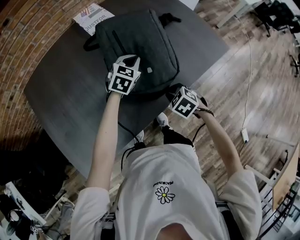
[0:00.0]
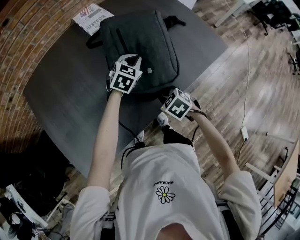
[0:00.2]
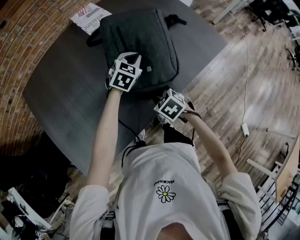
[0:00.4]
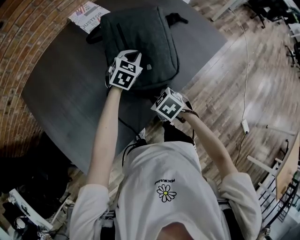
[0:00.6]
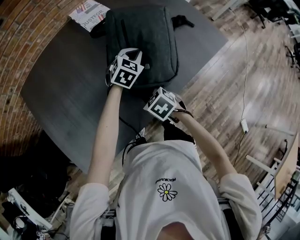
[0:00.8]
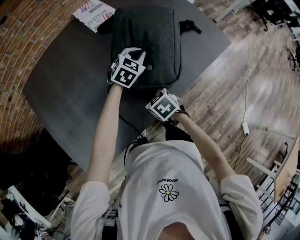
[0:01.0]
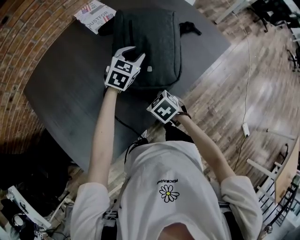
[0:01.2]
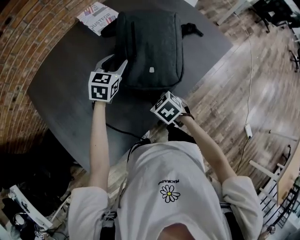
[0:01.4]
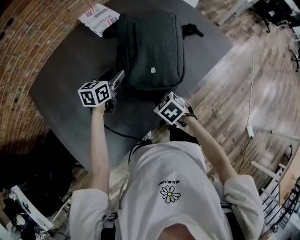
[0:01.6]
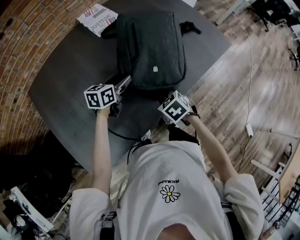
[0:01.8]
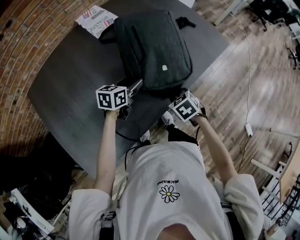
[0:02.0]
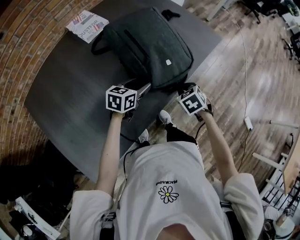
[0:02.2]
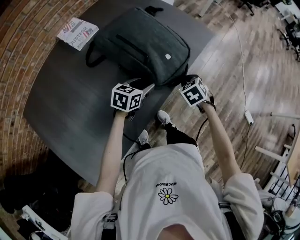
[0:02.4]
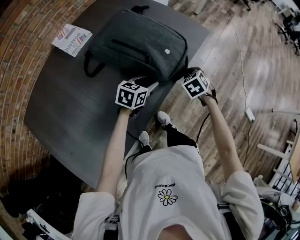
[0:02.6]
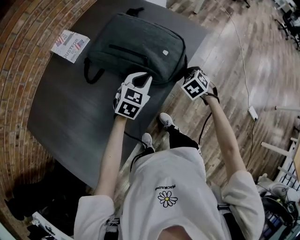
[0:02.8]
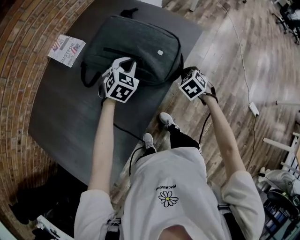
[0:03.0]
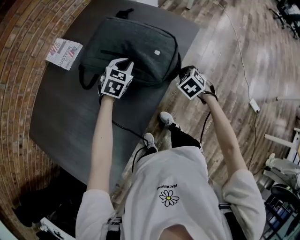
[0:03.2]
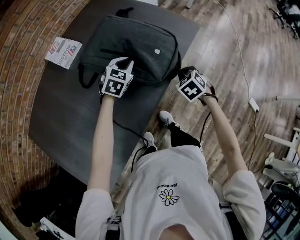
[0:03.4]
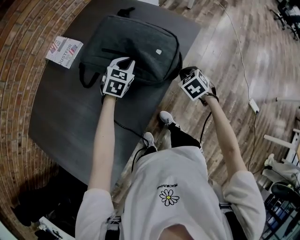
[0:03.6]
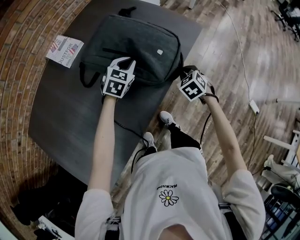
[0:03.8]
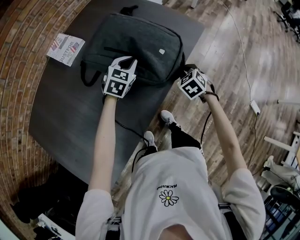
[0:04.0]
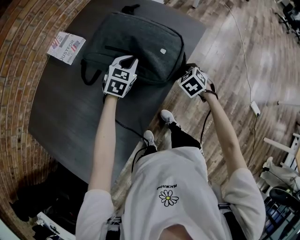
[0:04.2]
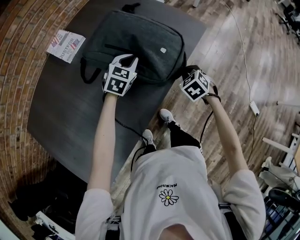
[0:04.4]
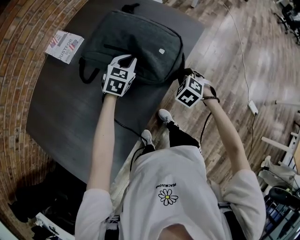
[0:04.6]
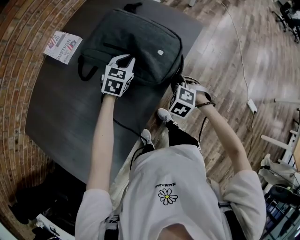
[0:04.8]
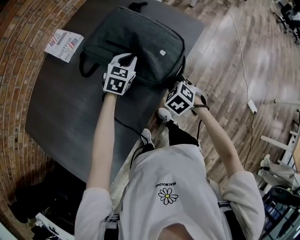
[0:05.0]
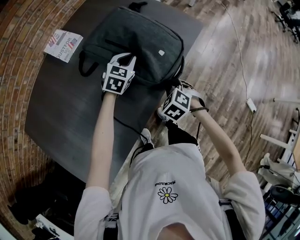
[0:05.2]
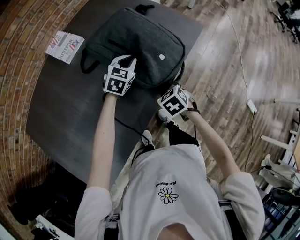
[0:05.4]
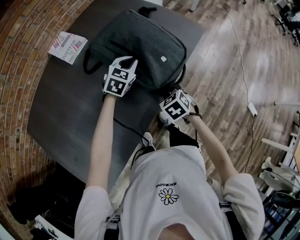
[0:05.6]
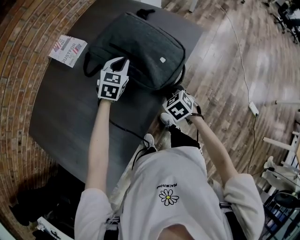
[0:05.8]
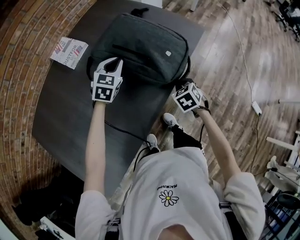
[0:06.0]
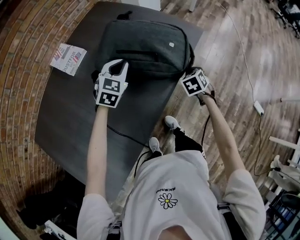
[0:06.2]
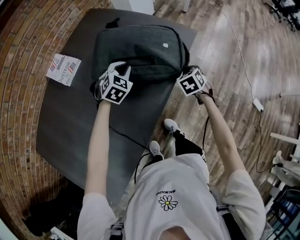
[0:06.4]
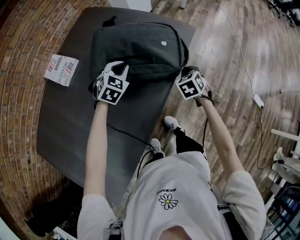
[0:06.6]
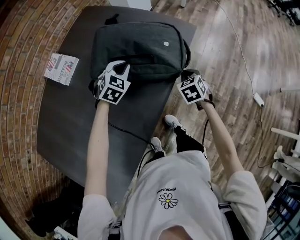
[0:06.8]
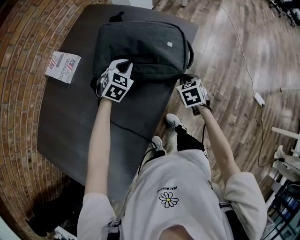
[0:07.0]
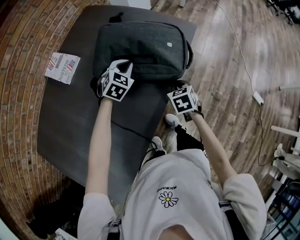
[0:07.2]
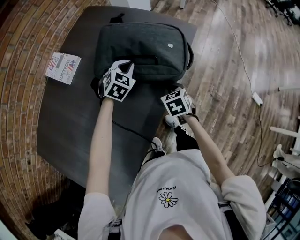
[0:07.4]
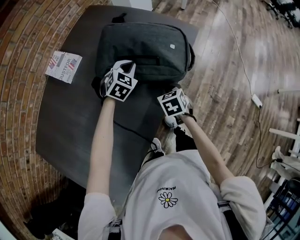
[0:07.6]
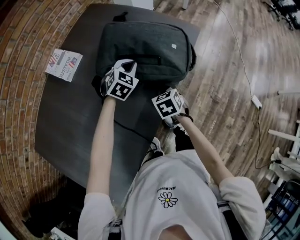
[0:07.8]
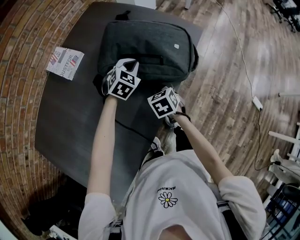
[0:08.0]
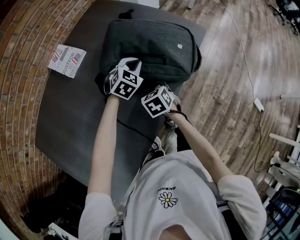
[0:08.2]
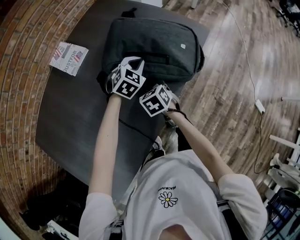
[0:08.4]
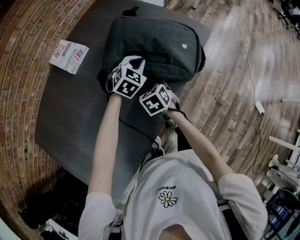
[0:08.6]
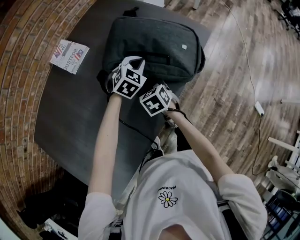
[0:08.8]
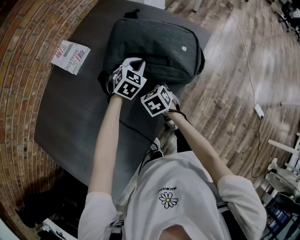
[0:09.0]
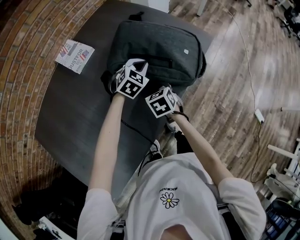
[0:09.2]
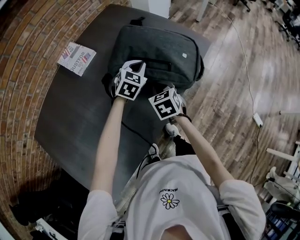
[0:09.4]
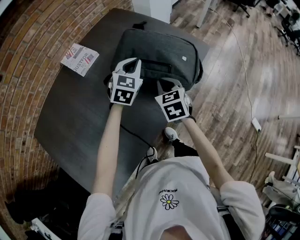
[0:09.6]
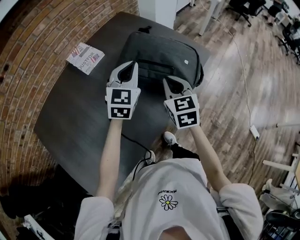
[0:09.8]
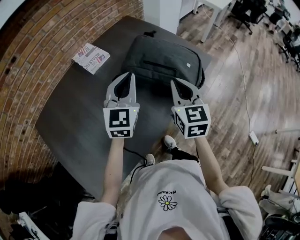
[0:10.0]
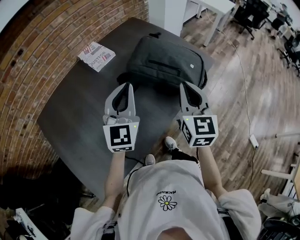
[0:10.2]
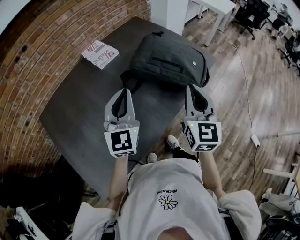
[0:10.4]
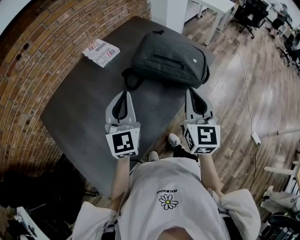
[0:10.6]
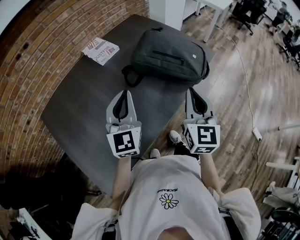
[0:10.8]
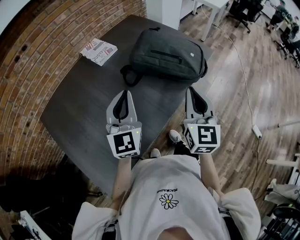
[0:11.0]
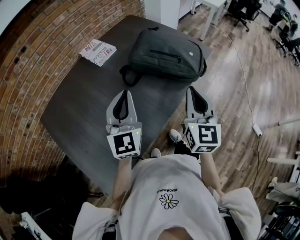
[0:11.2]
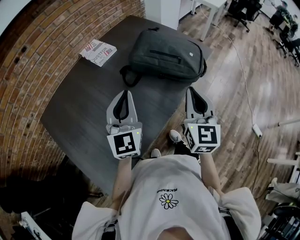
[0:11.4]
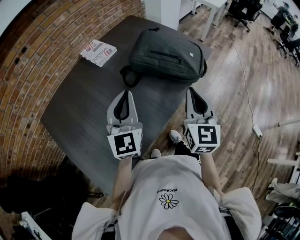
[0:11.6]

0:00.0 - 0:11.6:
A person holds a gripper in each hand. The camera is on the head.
0:00.0 - 0:01.4: The grippers both shift to the left by about 10 cm. The left gripper opens its fingers.
0:01.4 - 0:02.8: The right gripper changes place by some 30 cm, and rotates some 30 degrees. Meanwhile the left gripper shifts by roughly 25 cm, swivels approximately 30 degrees, and closes its fingers.
0:02.8 - 0:04.4: The left gripper moves forward and to the left, approximately 10 cm.
0:04.4 - 0:05.8: The left gripper ends up approximately 5 cm from where it was. Meanwhile the right gripper heads backward and to the left, covering approximately 10 cm.
0:05.8 - 0:07.2: The right gripper travels forward by about 5 cm, and swivels approximately 20 degrees. Meanwhile the left gripper moves roughly 5 cm.
0:07.2 - 0:08.8: The right gripper travels to the left by approximately 15 cm.
0:08.8 - 0:10.2: The right gripper is displaced upward by approximately 30 cm, and tilts its fingers some 50 degrees upward. Meanwhile the left gripper goes about 30 cm upward, backward and to the left, and tilts its fingers some 40 degrees upward.
0:10.2 - 0:11.6: Both grippers move backward, some 10 cm.

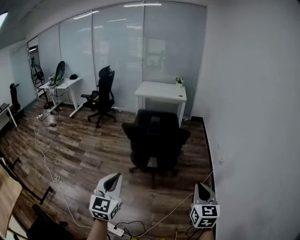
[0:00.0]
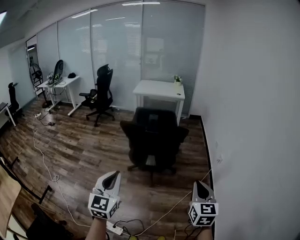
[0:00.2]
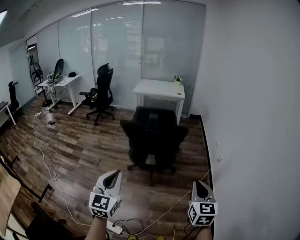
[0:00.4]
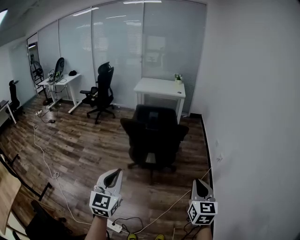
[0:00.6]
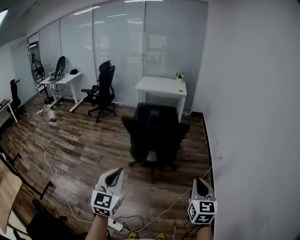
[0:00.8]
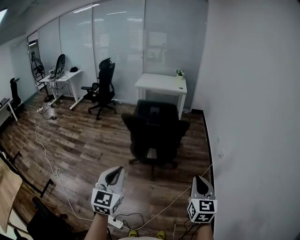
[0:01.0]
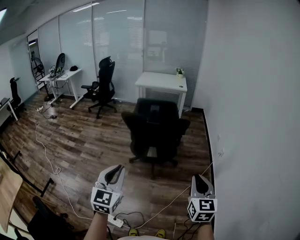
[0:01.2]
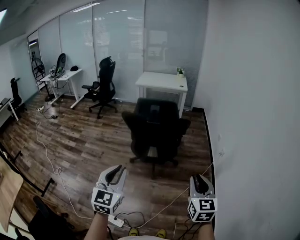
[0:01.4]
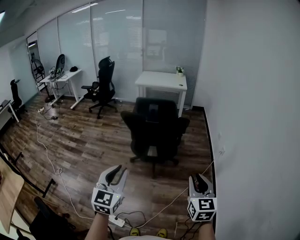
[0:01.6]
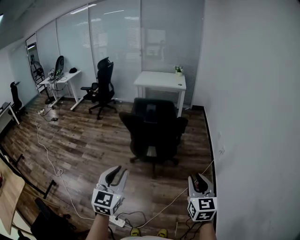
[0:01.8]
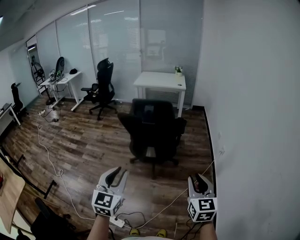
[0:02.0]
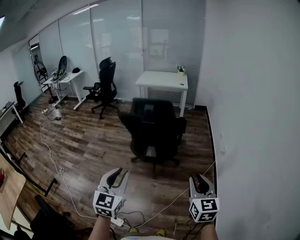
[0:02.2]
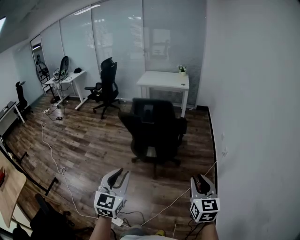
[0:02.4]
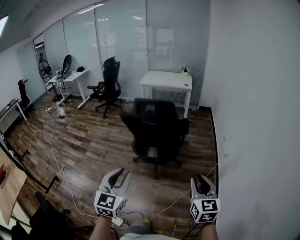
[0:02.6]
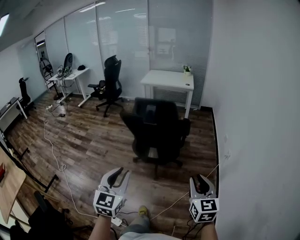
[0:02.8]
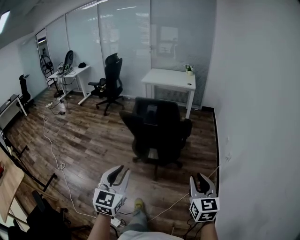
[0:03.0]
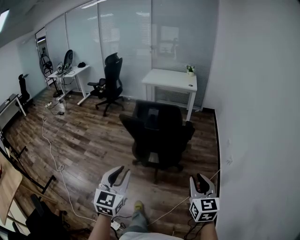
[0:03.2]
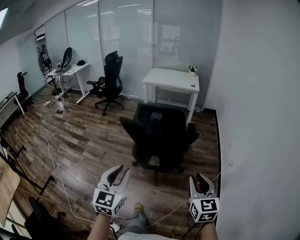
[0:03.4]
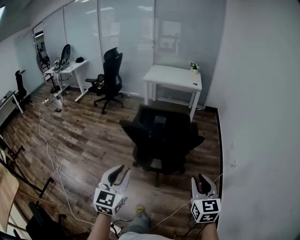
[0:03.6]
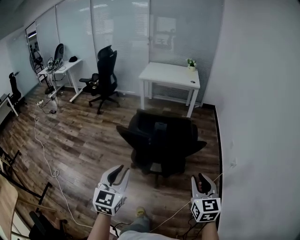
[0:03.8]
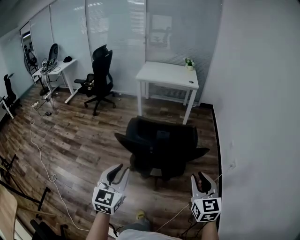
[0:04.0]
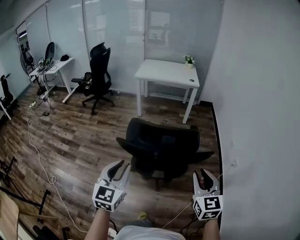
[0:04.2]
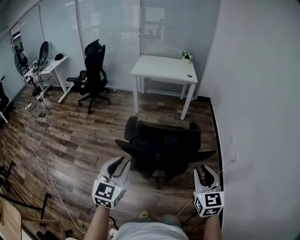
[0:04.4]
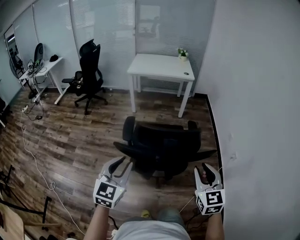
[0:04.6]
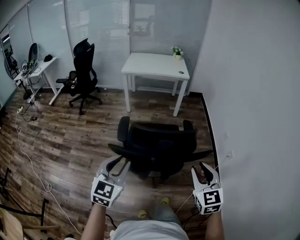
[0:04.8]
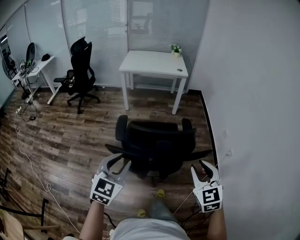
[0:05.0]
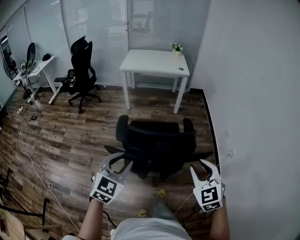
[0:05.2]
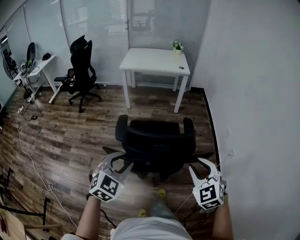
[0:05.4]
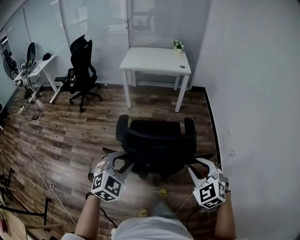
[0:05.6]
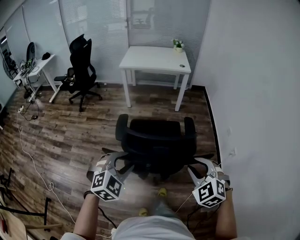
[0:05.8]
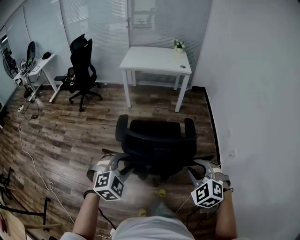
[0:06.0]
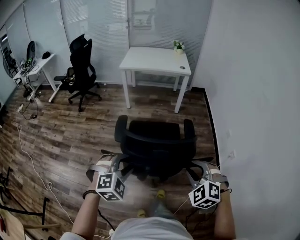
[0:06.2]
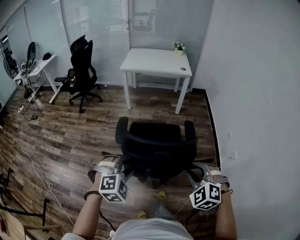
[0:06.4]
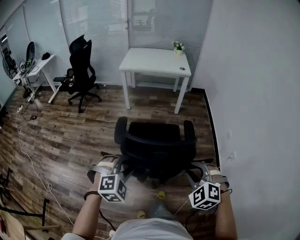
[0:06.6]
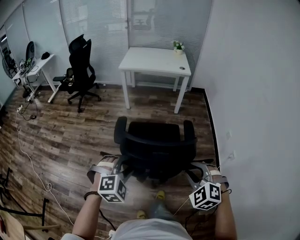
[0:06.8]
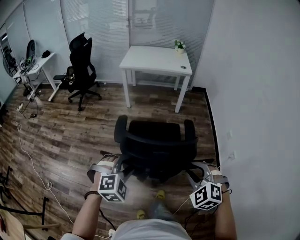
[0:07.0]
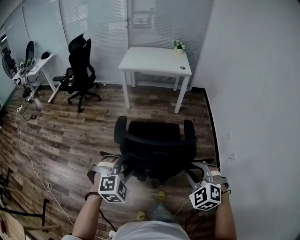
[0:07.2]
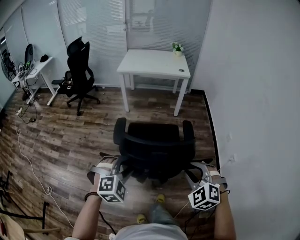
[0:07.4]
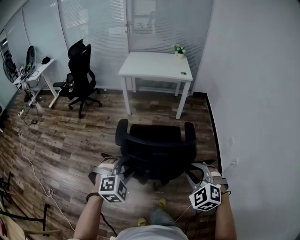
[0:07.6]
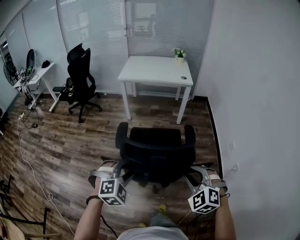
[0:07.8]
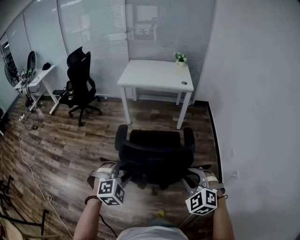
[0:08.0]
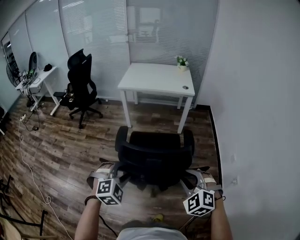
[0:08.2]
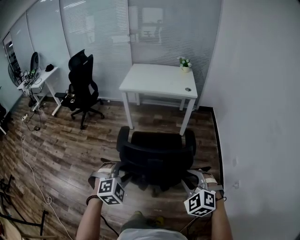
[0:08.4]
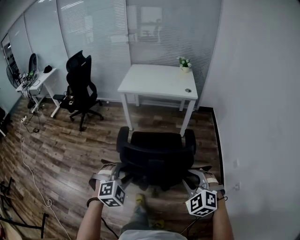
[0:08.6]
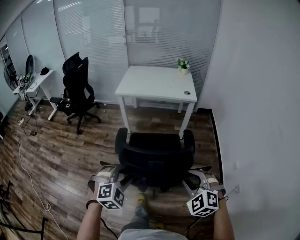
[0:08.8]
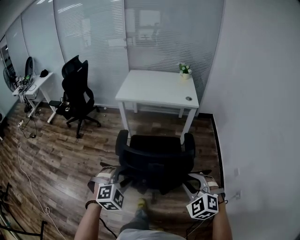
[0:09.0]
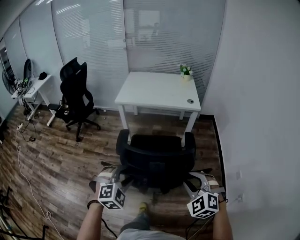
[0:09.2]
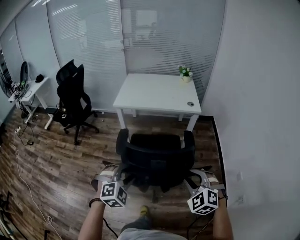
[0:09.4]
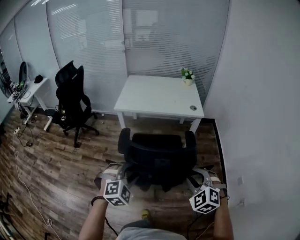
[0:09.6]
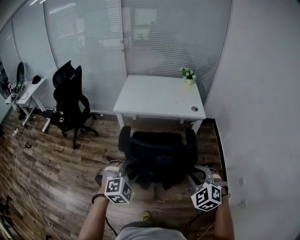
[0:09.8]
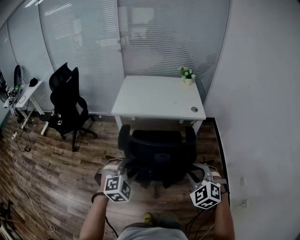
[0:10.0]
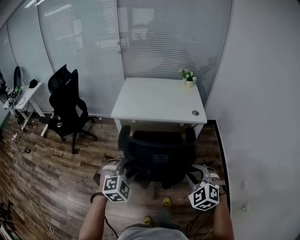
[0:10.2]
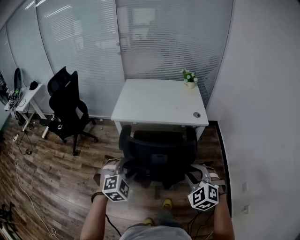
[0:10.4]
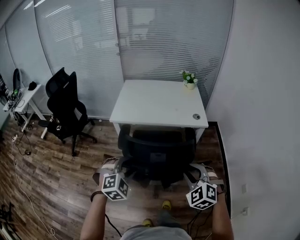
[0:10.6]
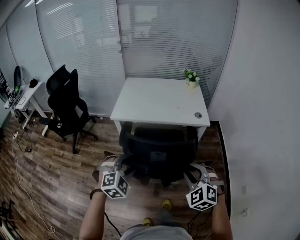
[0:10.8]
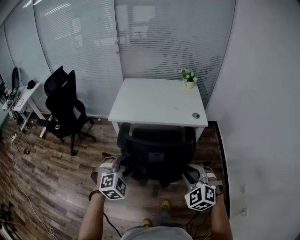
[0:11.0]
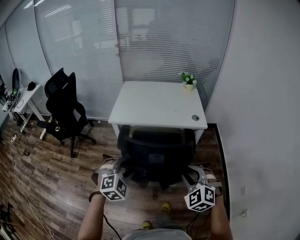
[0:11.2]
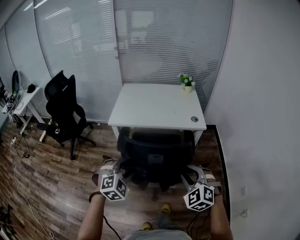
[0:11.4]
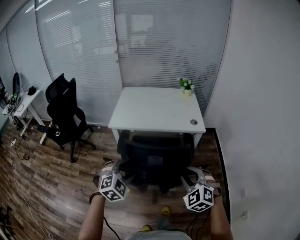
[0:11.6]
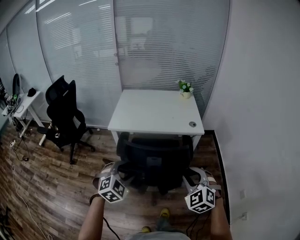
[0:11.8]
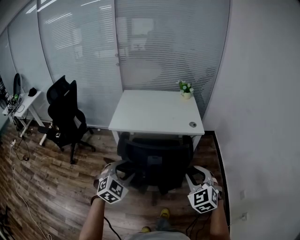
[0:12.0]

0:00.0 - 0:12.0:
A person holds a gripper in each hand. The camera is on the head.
0:00.0 - 0:01.6: There are only small adjustments of the grippers.
0:01.6 - 0:03.0: The grippers both shift forward and to the right by roughly 10 cm.
0:03.0 - 0:04.4: Both grippers are carried forward and to the left, some 40 cm.
0:04.4 - 0:06.0: The left gripper goes approximately 15 cm forward, downward and to the right, and tilts its fingers approximately 30 degrees downward; the right gripper moves forward and downward, roughly 10 cm, and twists roughly 40 degrees counterclockwise, seen from behind.
0:06.0 - 0:07.6: The grippers both shift forward by roughly 10 cm.
0:07.6 - 0:09.0: The grippers both shift forward by roughly 30 cm.
0:09.0 - 0:10.4: The grippers both shift forward by about 35 cm.
0:10.4 - 0:12.0: The right gripper ends up approximately 5 cm from where it was.
